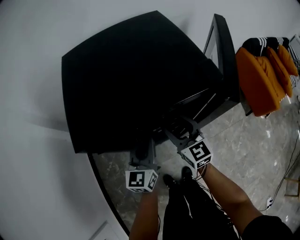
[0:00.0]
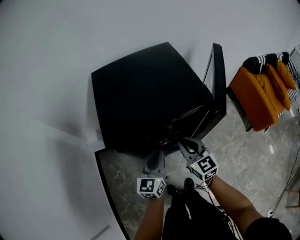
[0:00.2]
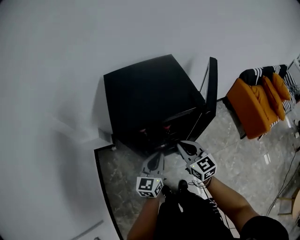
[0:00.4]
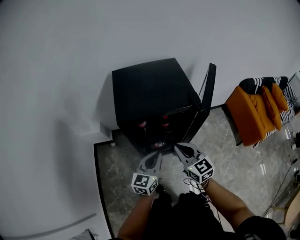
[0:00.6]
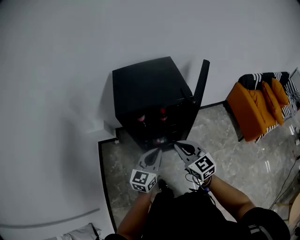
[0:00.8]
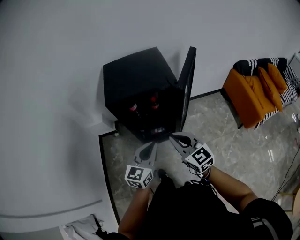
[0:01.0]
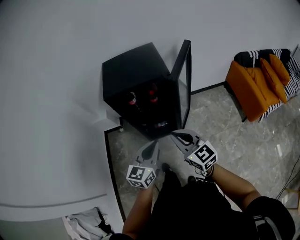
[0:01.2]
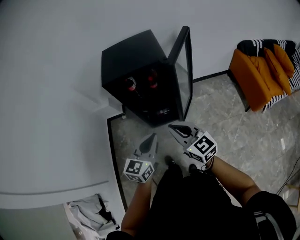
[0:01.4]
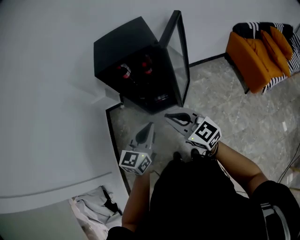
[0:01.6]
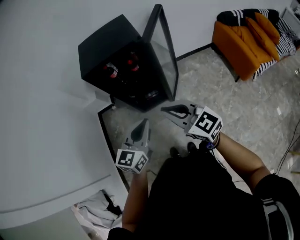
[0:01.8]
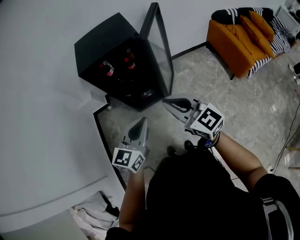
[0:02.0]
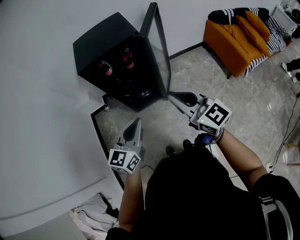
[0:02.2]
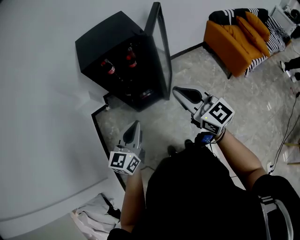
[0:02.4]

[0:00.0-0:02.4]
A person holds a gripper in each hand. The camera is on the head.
0:00.0 to 0:01.2: Both grippers travel together backward and upward, approximately 35 cm. The right gripper swivels some 20 degrees, and closes its fingers.
0:01.2 to 0:02.4: The right gripper moves backward, upward and to the right, roughly 10 cm. Meanwhile the left gripper travels backward and to the left by some 10 cm.

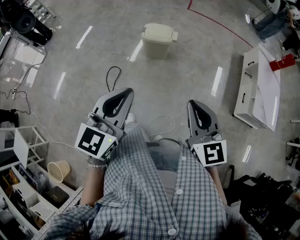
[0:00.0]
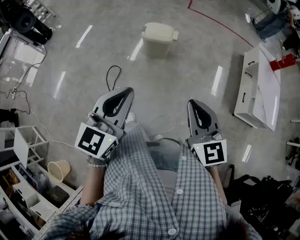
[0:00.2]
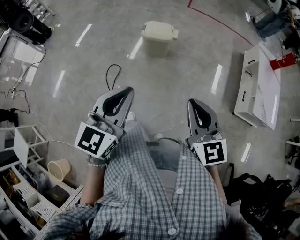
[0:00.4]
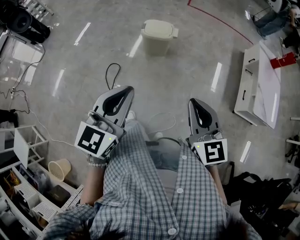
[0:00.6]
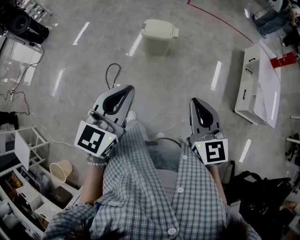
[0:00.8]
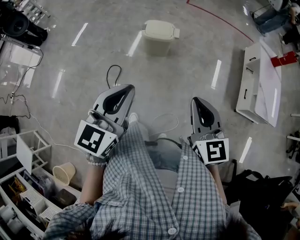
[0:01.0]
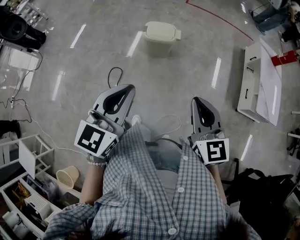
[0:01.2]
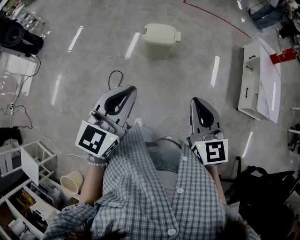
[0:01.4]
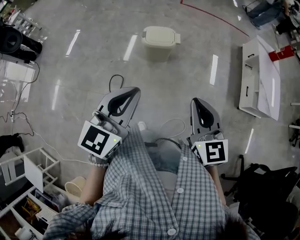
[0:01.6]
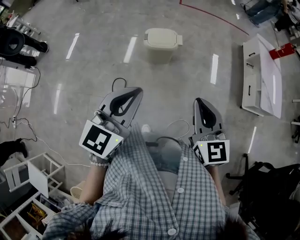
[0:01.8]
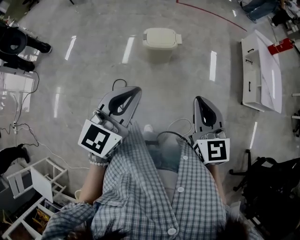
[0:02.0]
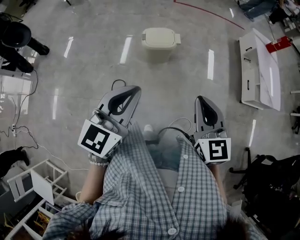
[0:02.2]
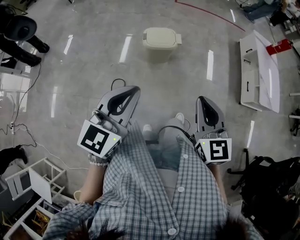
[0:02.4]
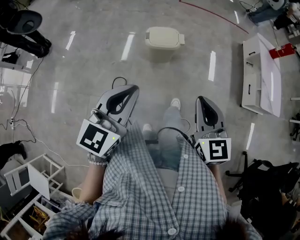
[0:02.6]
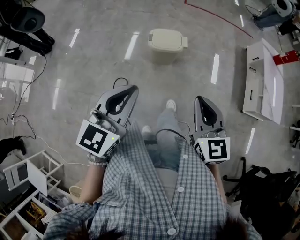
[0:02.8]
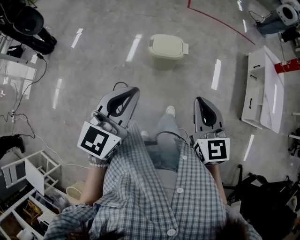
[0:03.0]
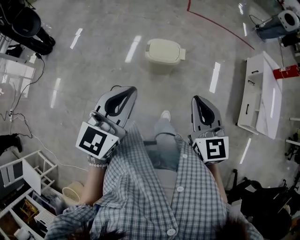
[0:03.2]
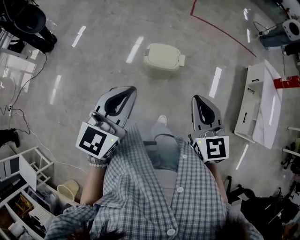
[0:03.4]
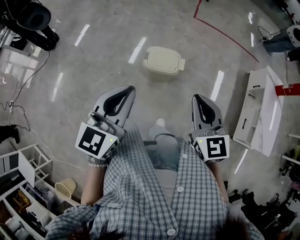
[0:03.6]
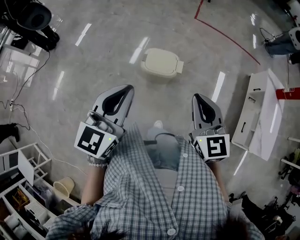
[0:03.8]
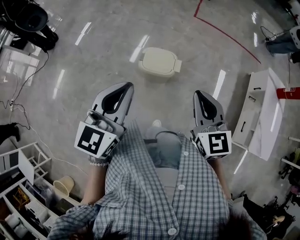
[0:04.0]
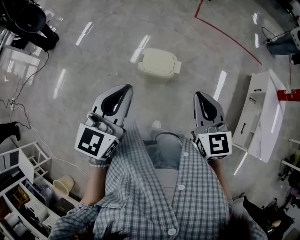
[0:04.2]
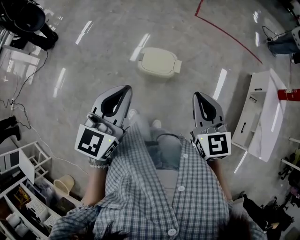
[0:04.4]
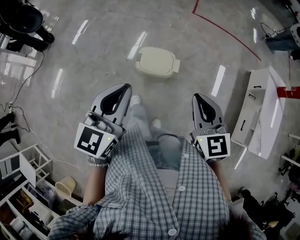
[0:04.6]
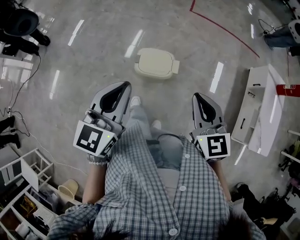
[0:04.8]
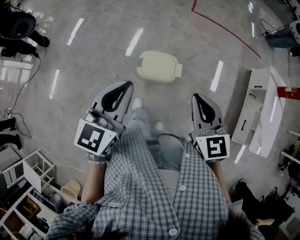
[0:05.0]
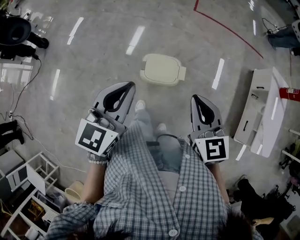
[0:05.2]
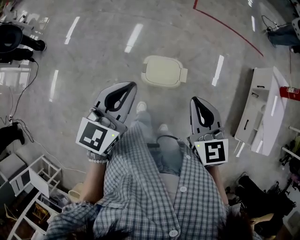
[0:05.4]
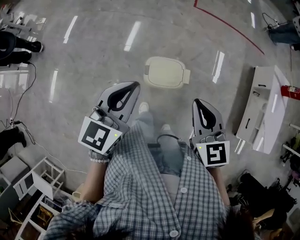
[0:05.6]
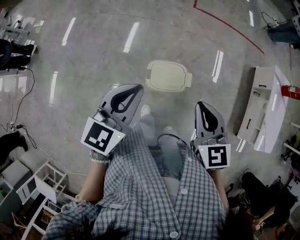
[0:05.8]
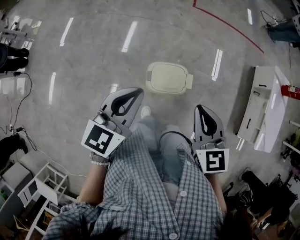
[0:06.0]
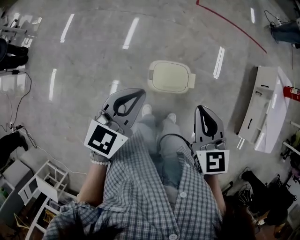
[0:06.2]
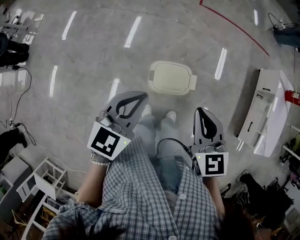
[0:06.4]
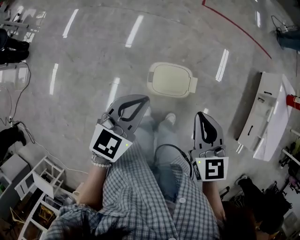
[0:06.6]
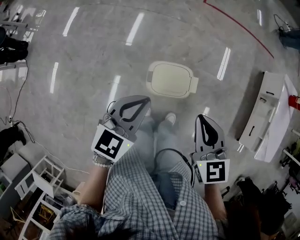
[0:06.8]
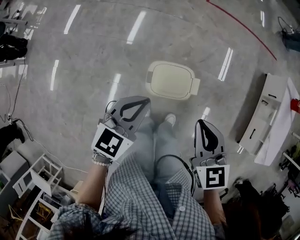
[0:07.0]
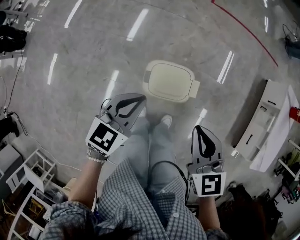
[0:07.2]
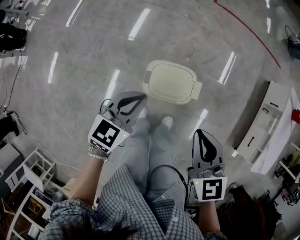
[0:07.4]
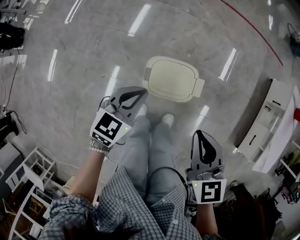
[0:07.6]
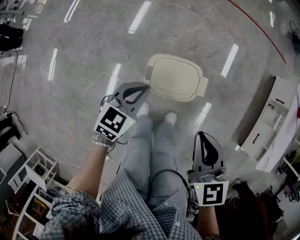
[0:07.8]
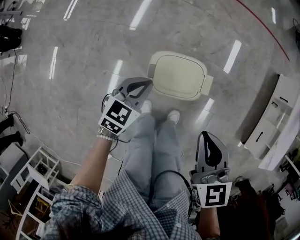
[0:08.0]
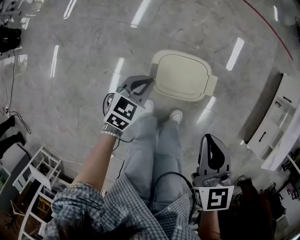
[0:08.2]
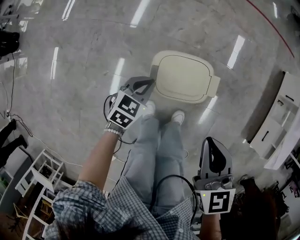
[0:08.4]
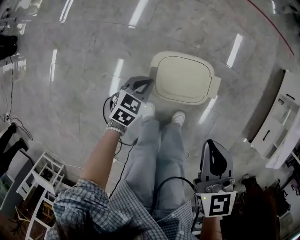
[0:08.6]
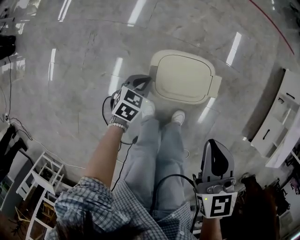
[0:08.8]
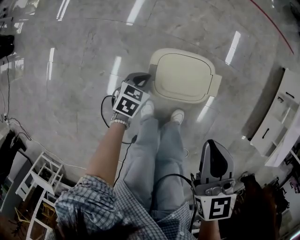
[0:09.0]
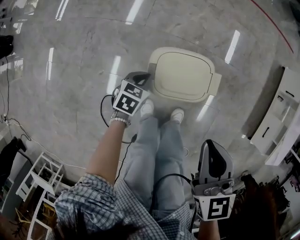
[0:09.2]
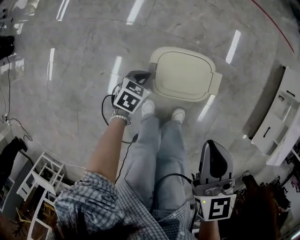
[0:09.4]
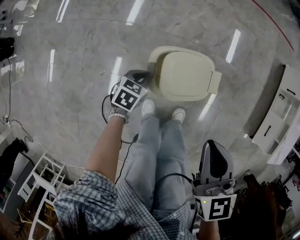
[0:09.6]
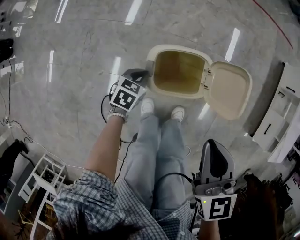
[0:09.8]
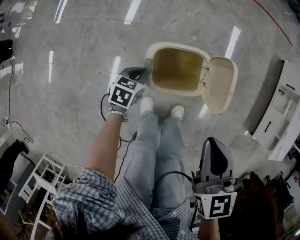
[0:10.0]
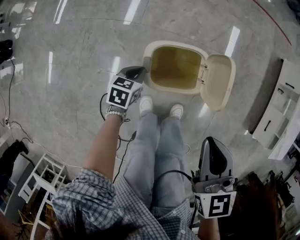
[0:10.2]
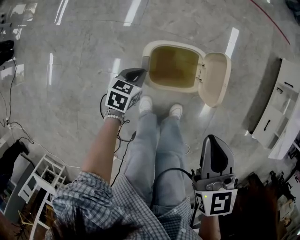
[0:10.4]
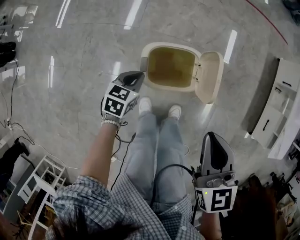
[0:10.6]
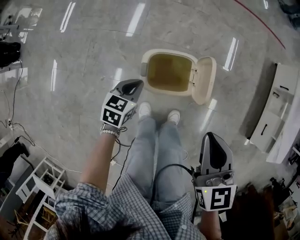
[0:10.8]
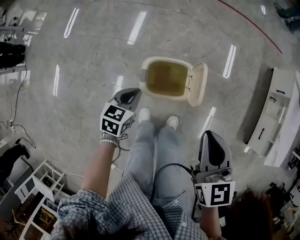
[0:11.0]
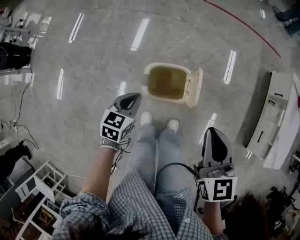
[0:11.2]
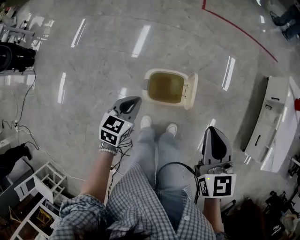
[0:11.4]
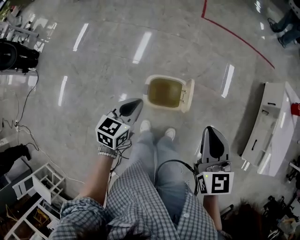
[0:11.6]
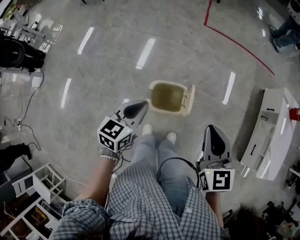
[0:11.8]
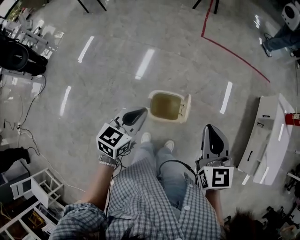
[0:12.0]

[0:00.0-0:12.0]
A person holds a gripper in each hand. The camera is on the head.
0:00.0 to 0:01.6: The right gripper is displaced to the left and forward by about 15 cm, while the left gripper travels forward and to the left by approximately 15 cm.
0:01.6 to 0:03.0: The left gripper travels forward and to the left by about 10 cm. The right gripper goes some 10 cm forward.
0:03.0 to 0:04.4: Both grippers move forward and to the right, roughly 20 cm.
0:04.4 to 0:06.0: Both grippers move forward and to the left, about 20 cm. The left gripper swivels roughly 20 degrees.
0:06.0 to 0:07.6: The right gripper moves downward, about 15 cm; the left gripper shifts some 25 cm downward.
0:07.6 to 0:09.0: The right gripper heads downward, covering some 5 cm; the left gripper moves downward, about 25 cm, and turns by roughly 20 degrees.
0:09.0 to 0:10.4: The grippers stay close to where they were, moving slightly.
0:10.4 to 0:12.0: The left gripper heads upward, covering approximately 40 cm, and rotates some 30 degrees. Meanwhile the right gripper heads upward, covering about 20 cm.

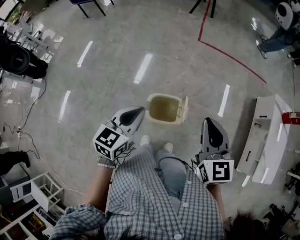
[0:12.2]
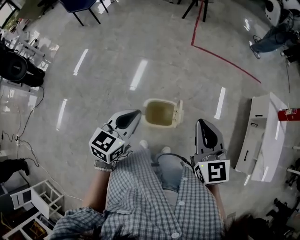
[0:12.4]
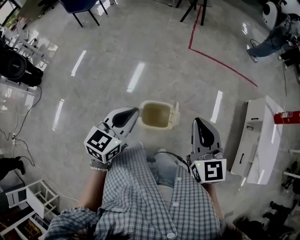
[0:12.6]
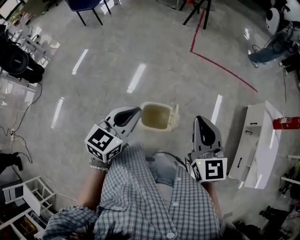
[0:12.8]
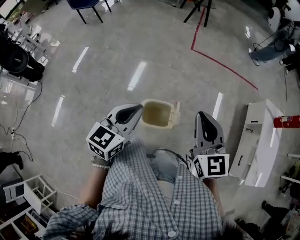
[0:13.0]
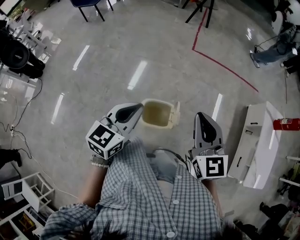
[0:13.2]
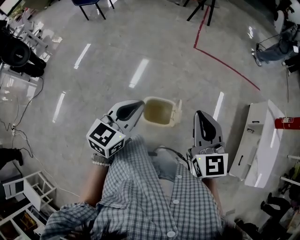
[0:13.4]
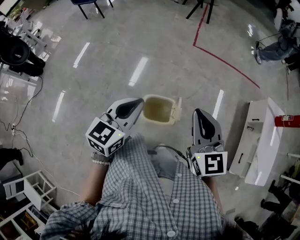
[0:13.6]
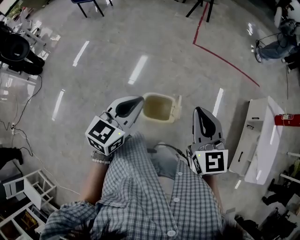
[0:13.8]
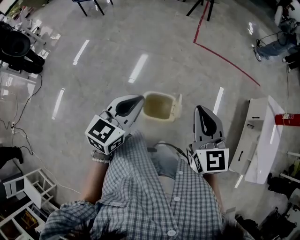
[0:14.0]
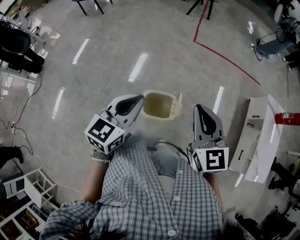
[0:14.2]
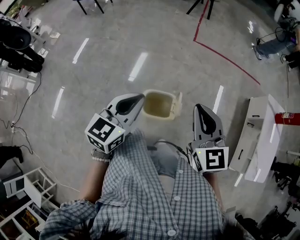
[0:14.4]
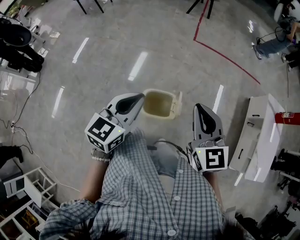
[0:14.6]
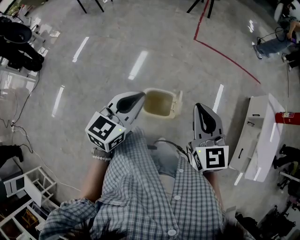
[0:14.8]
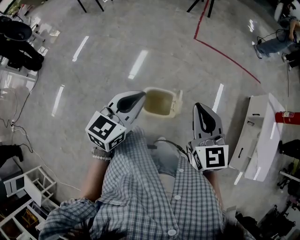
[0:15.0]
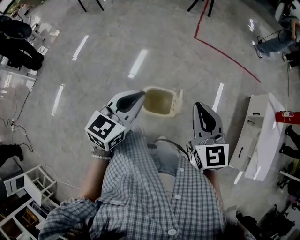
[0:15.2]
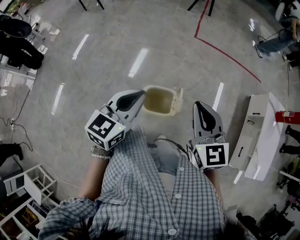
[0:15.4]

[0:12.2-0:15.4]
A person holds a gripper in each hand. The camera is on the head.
0:12.2 to 0:13.8: The left gripper goes some 5 cm upward.
0:13.8 to 0:15.4: Both grippers stay put.

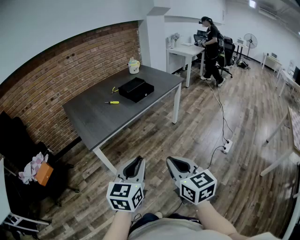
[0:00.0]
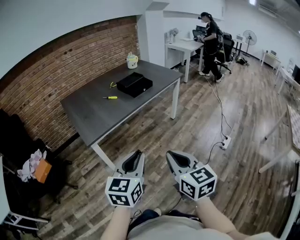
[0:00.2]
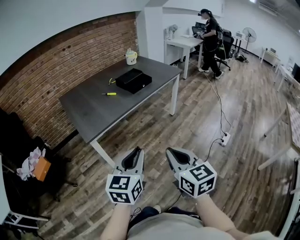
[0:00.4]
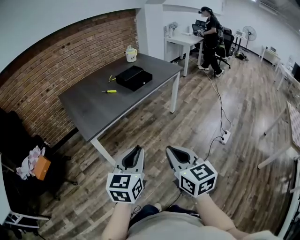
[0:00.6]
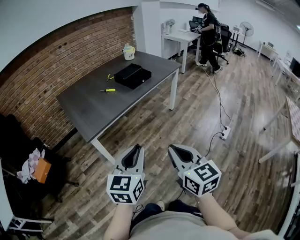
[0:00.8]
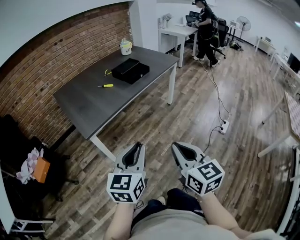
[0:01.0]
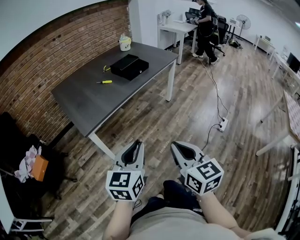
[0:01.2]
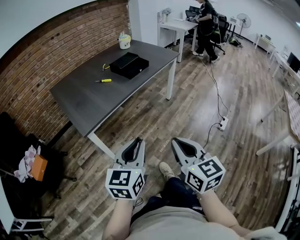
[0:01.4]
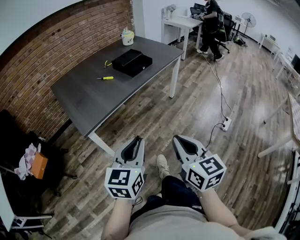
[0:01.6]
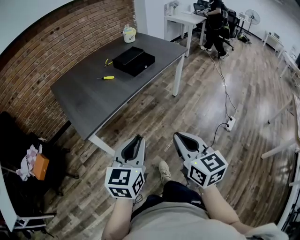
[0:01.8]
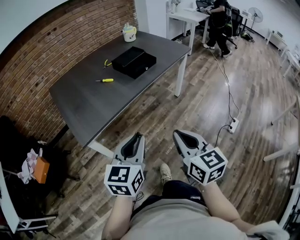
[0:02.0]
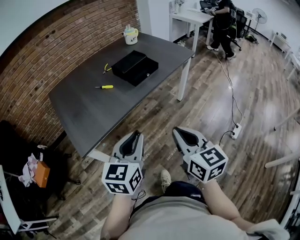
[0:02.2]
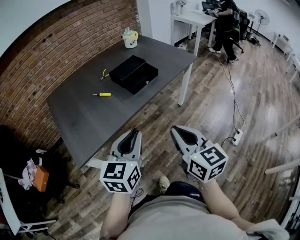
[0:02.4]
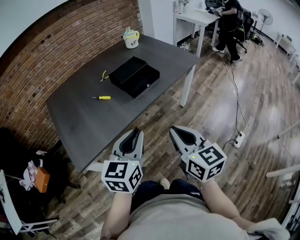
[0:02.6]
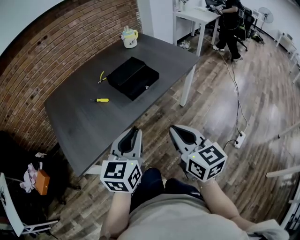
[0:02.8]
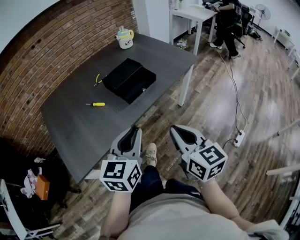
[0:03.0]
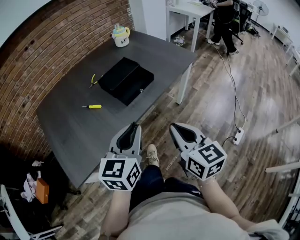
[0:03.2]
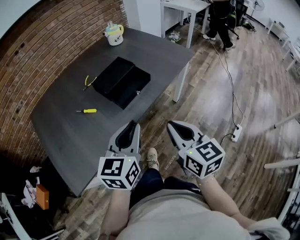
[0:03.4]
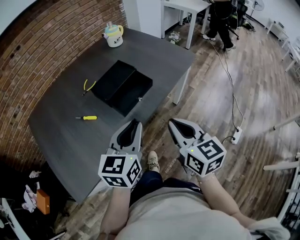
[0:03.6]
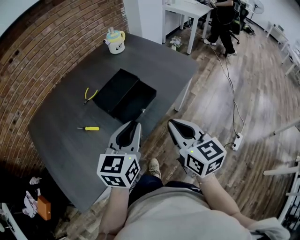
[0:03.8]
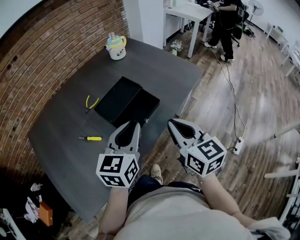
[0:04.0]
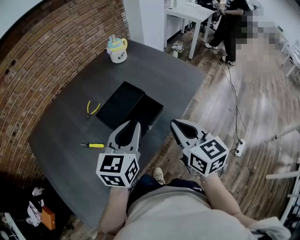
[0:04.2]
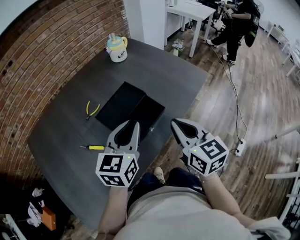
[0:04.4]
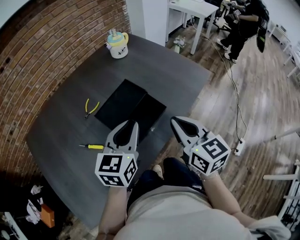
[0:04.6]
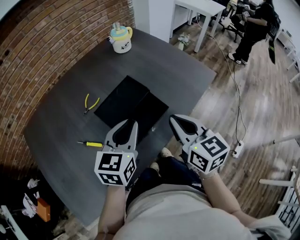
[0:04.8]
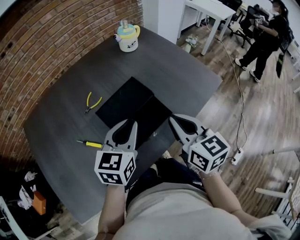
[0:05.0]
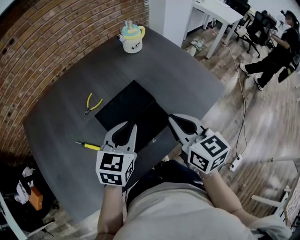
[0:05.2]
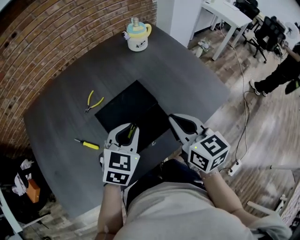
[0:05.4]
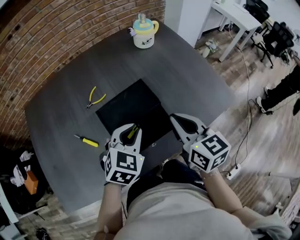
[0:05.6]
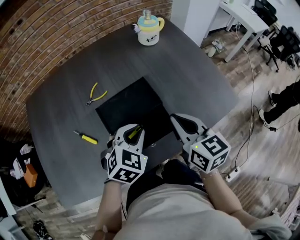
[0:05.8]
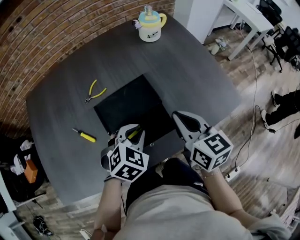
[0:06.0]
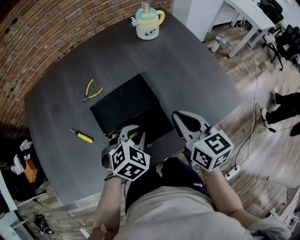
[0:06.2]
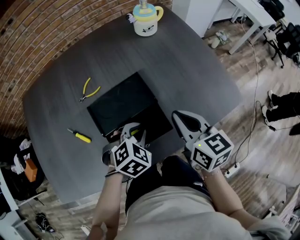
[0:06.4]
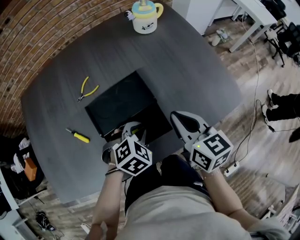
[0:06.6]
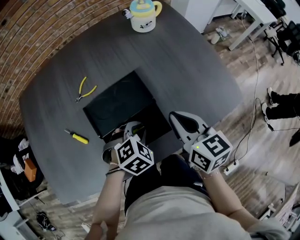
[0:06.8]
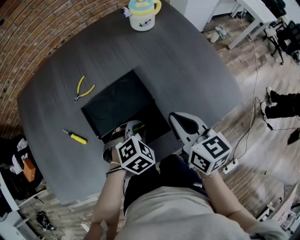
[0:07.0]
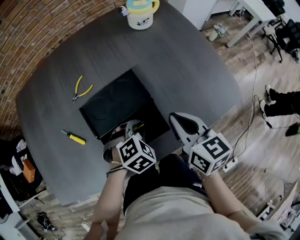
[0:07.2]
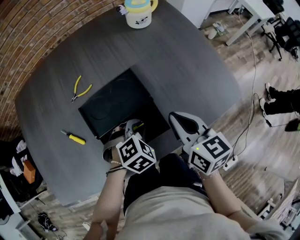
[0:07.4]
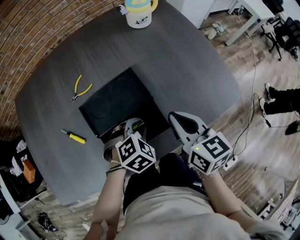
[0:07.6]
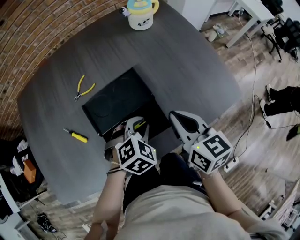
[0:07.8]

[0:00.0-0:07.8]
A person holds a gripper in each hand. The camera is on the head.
0:00.0 to 0:01.6: Both grippers move forward, about 5 cm.
0:01.6 to 0:03.2: The grippers both shift forward by approximately 35 cm.
0:03.2 to 0:04.6: The two grippers go some 25 cm forward.
0:04.6 to 0:06.2: The left gripper travels downward by about 15 cm, and tips its fingers downward by approximately 40 degrees, while the right gripper travels forward and downward by approximately 15 cm, and turns by roughly 20 degrees.
